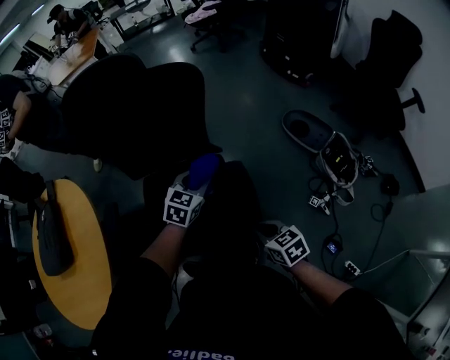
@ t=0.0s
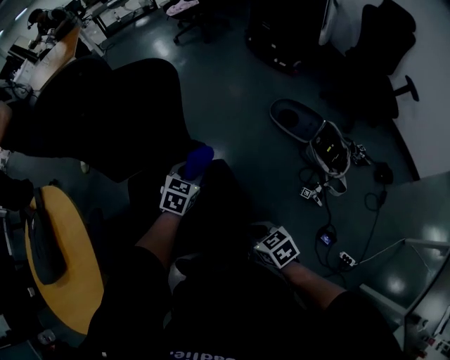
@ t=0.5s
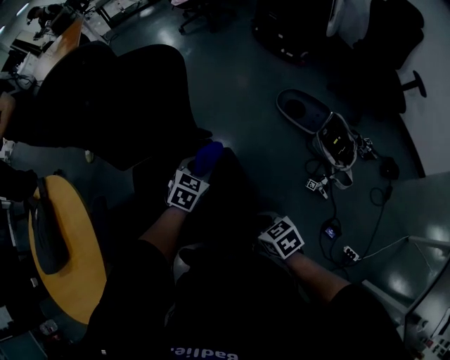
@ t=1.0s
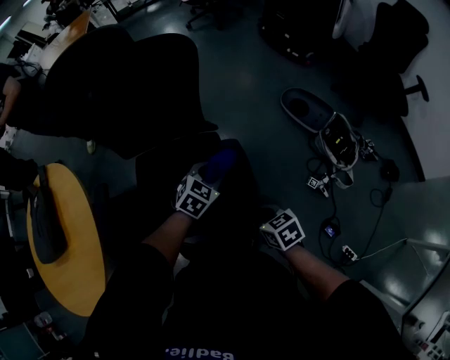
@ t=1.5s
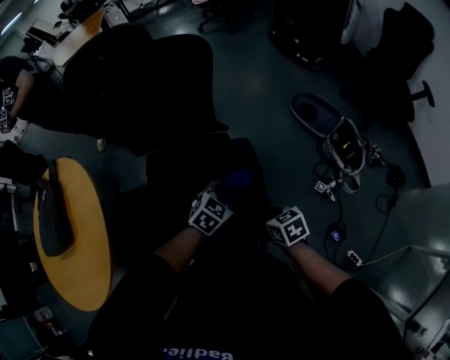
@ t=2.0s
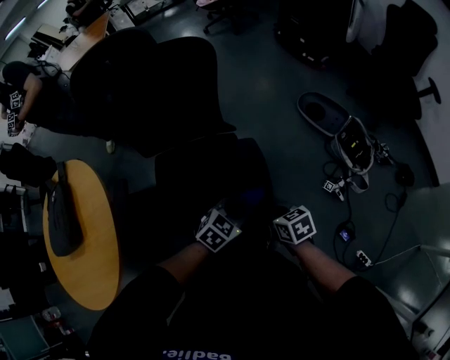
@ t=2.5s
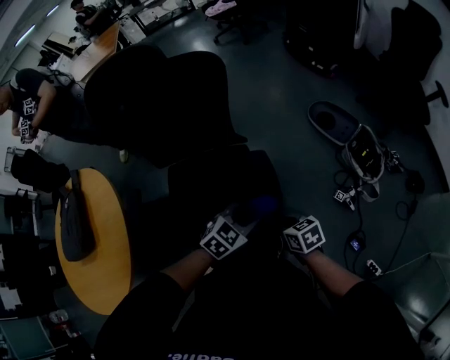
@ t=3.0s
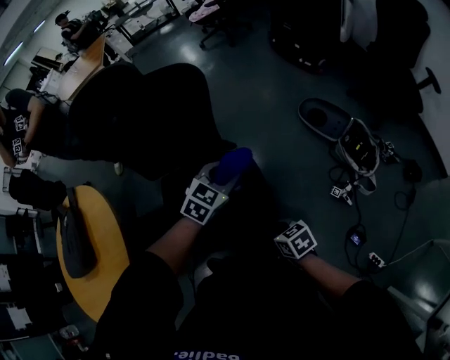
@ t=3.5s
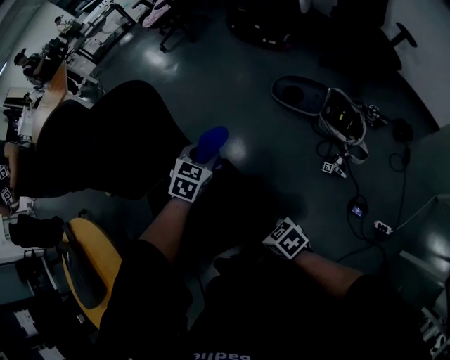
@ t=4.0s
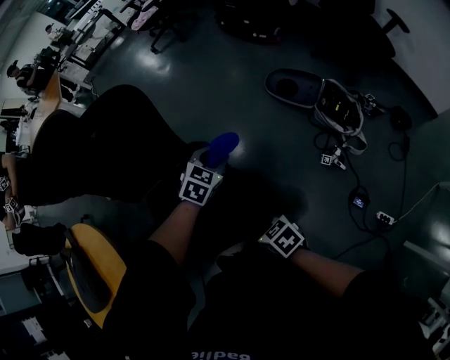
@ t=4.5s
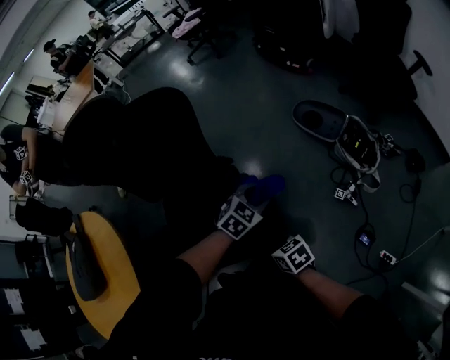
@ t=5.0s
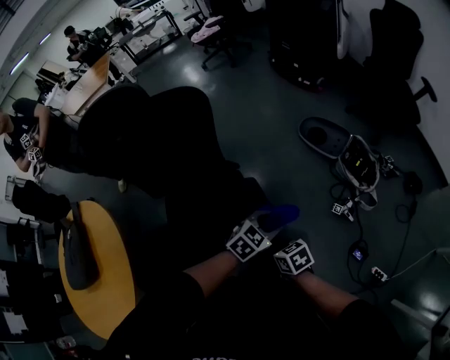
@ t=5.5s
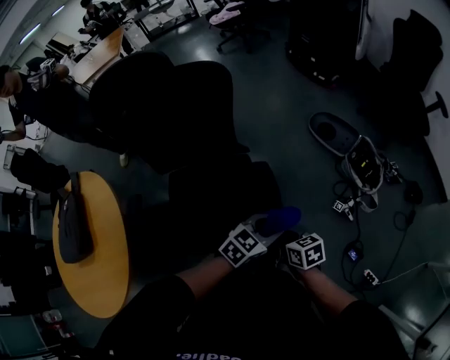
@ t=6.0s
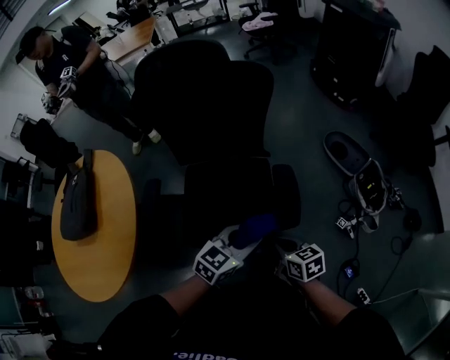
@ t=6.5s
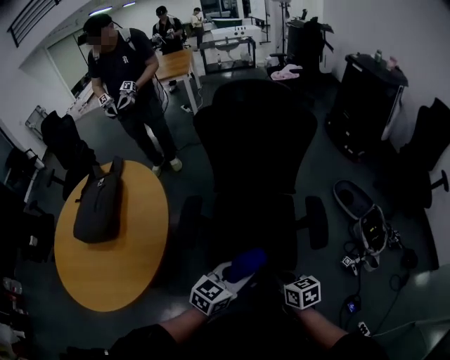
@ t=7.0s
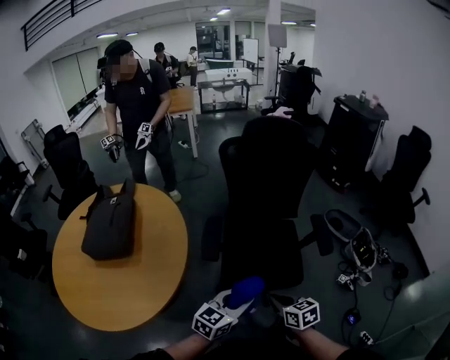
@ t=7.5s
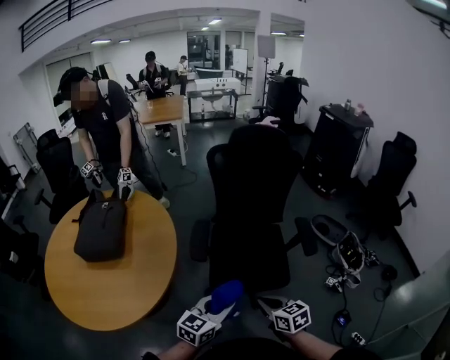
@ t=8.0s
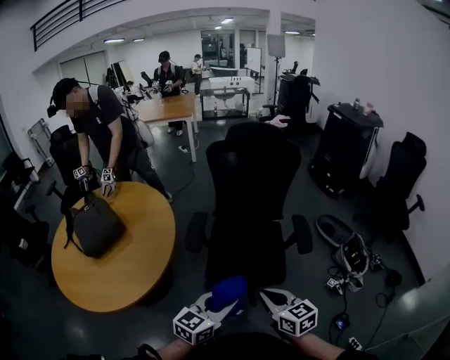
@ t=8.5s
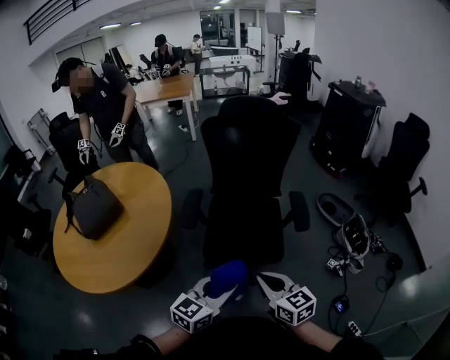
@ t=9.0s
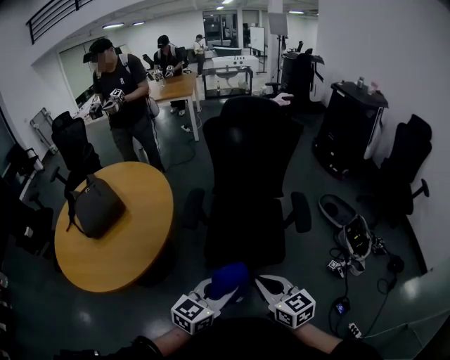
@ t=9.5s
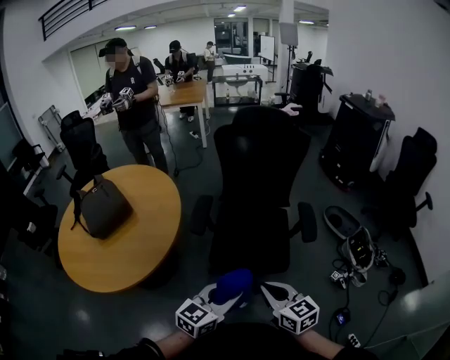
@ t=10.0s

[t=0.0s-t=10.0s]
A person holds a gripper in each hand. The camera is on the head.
t=0.0s to t=2.0s: The left gripper heads backward, downward and to the right, covering some 15 cm.
t=2.0s to t=4.0s: The left gripper is displaced forward by approximately 20 cm.
t=4.0s to t=6.0s: The left gripper shifts by some 25 cm, and swivels about 30 degrees.
t=6.0s to t=8.0s: The right gripper moves to the left, backward and upward, some 40 cm, and rotates roughly 20 degrees, while the left gripper is displaced to the left and backward by about 50 cm, and swivels approximately 40 degrees.
t=8.0s to t=10.0s: The right gripper is displaced upward and to the right by some 10 cm, while the left gripper travels to the right and backward by roughly 10 cm.

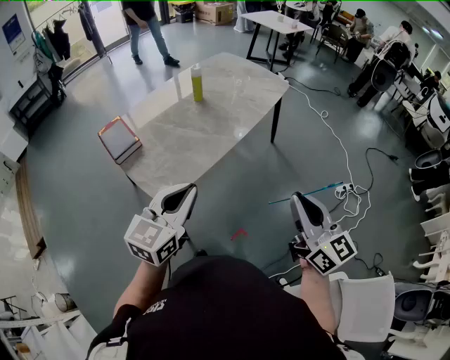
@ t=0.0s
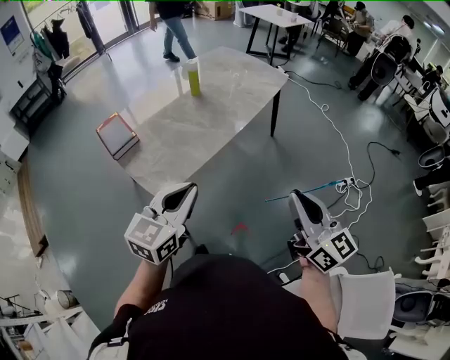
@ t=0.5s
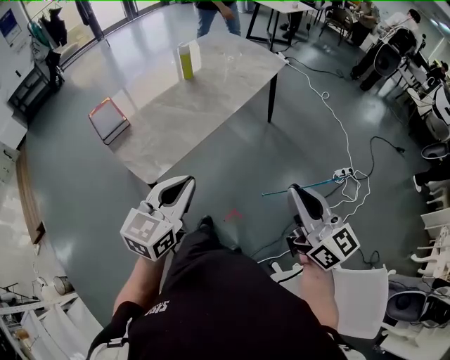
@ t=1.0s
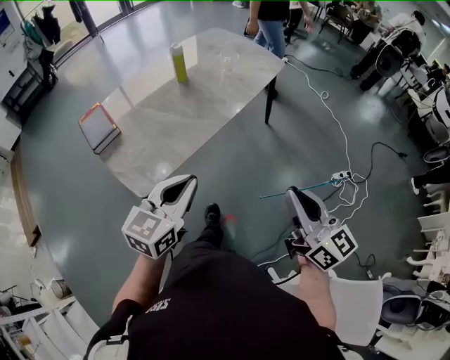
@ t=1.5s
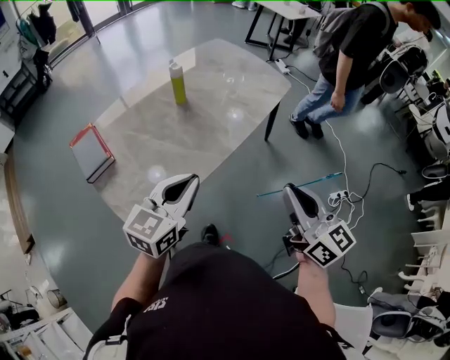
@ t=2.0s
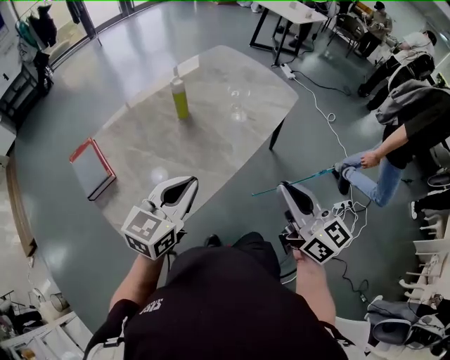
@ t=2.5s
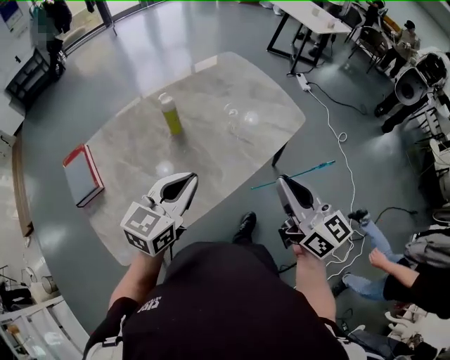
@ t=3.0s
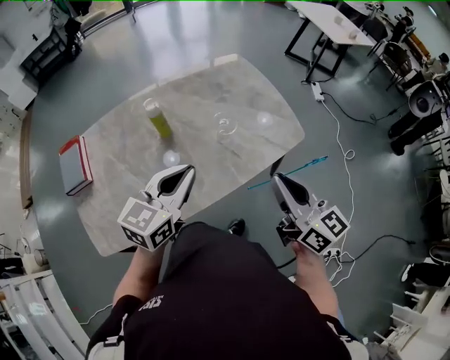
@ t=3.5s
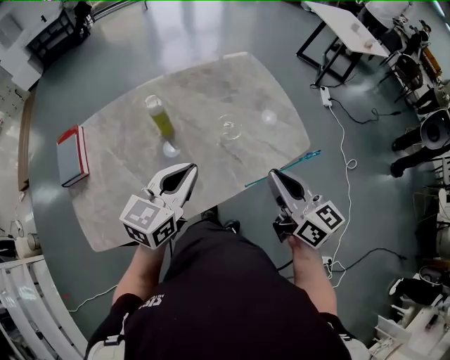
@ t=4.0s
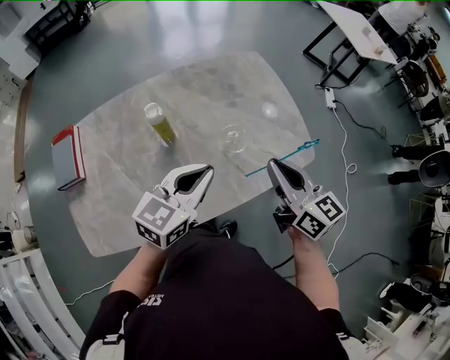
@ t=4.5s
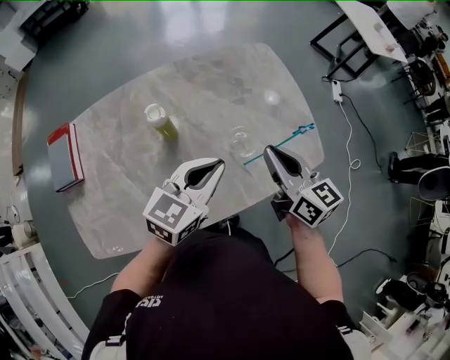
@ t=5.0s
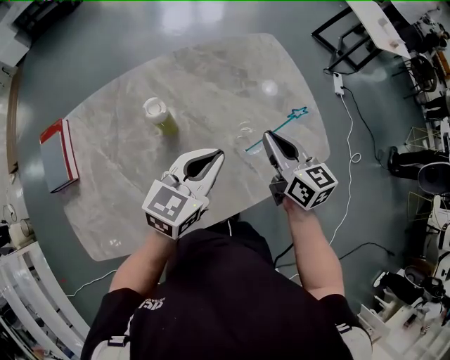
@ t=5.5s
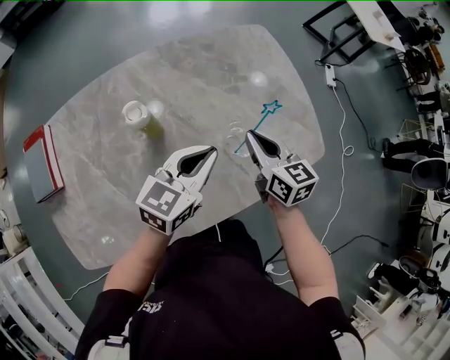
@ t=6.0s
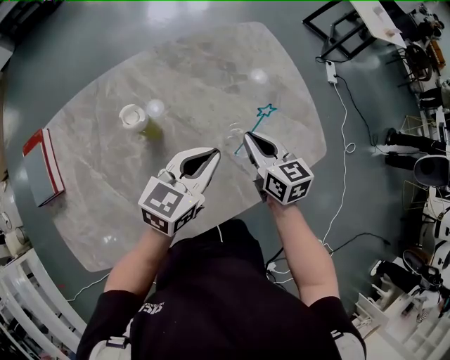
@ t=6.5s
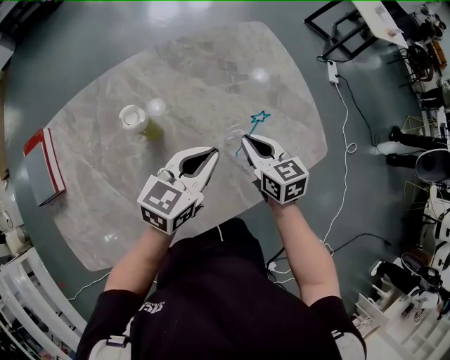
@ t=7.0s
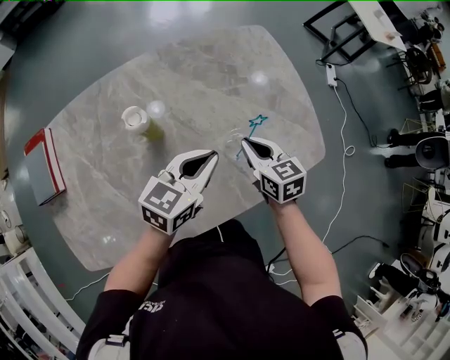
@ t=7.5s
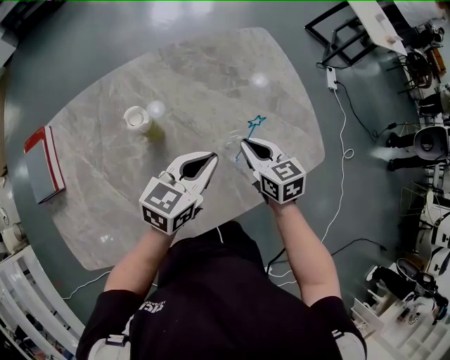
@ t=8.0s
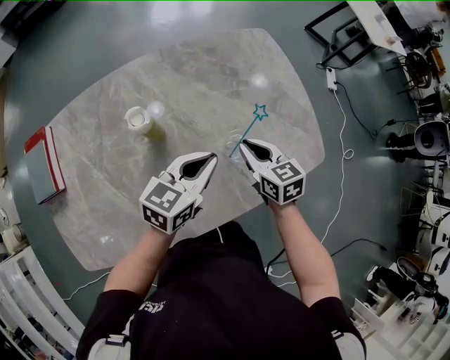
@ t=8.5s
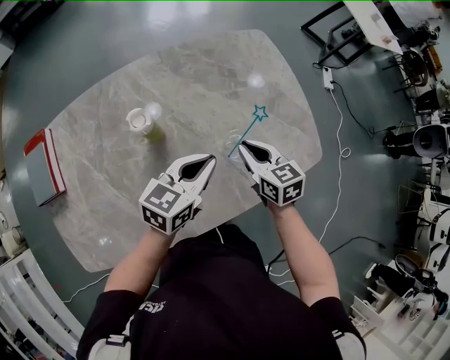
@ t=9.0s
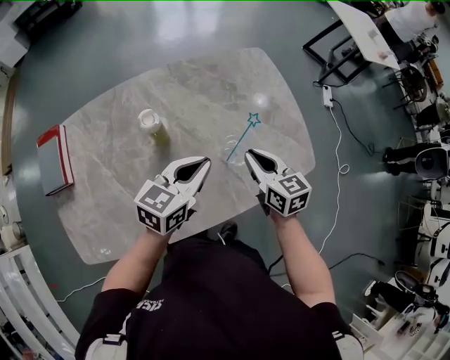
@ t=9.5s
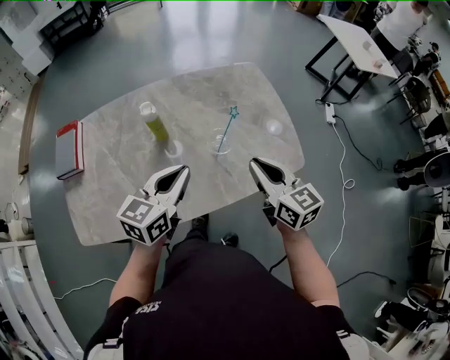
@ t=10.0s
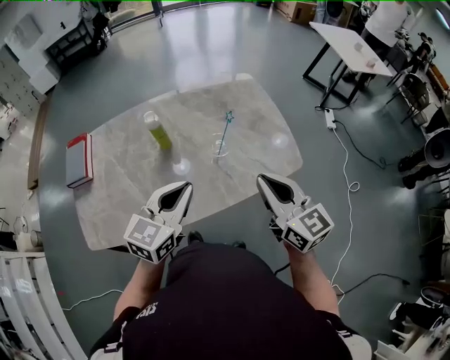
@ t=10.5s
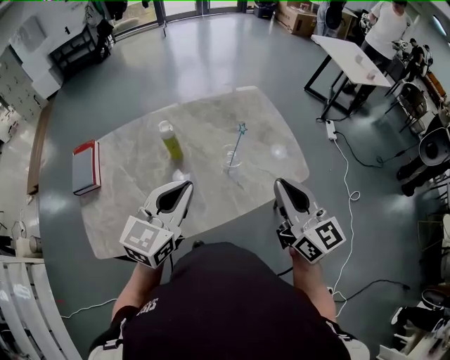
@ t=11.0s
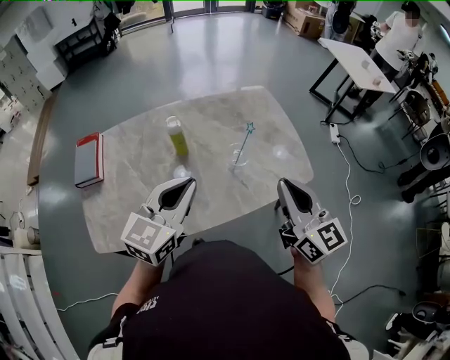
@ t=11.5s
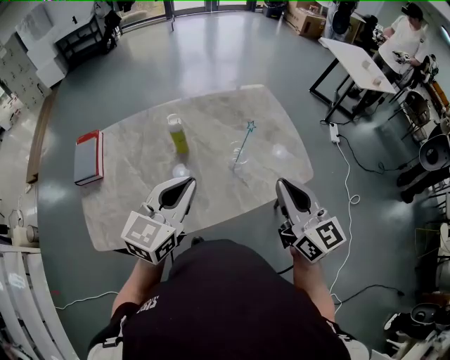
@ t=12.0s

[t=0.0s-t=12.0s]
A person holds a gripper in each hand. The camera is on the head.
t=0.0s to t=2.0s: Both grippers travel together forward, approximately 20 cm.
t=2.0s to t=4.0s: The left gripper moves forward and to the right, approximately 35 cm, and turns by some 20 degrees, while the right gripper moves forward, roughly 40 cm, and turns by approximately 30 degrees.
t=4.0s to t=6.0s: Both grippers move forward and downward, about 25 cm.
t=6.0s to t=8.0s: The grippers stay close to where they were, moving slightly.
t=8.0s to t=10.0s: The left gripper shifts about 15 cm upward and backward. The right gripper is displaced upward, backward and to the right by about 20 cm, and swivels some 20 degrees.
t=10.0s to t=12.0s: The two grippers go some 10 cm upward and backward.

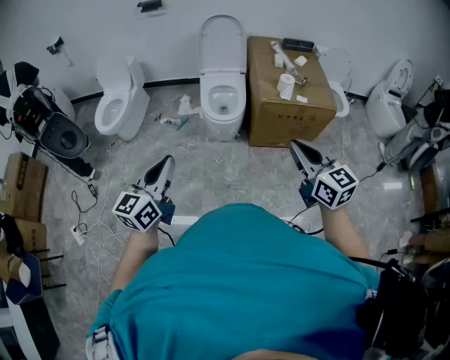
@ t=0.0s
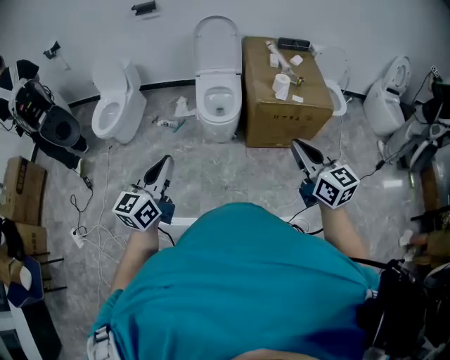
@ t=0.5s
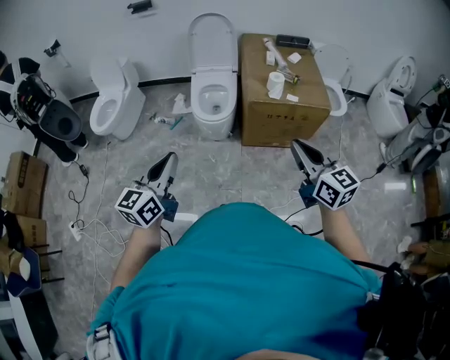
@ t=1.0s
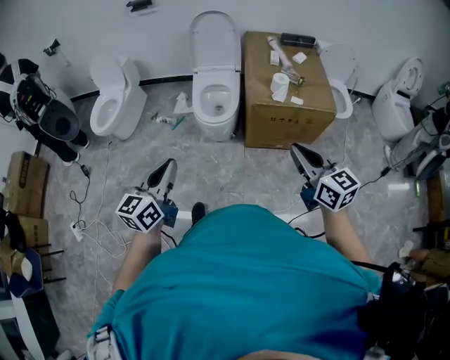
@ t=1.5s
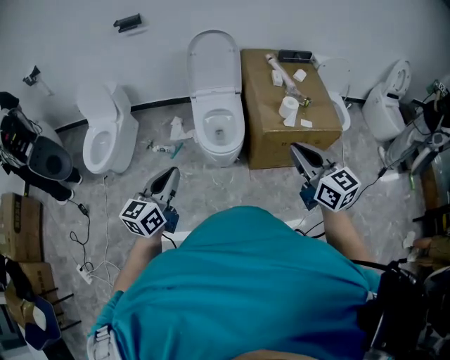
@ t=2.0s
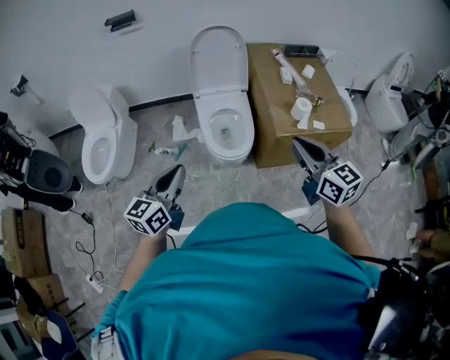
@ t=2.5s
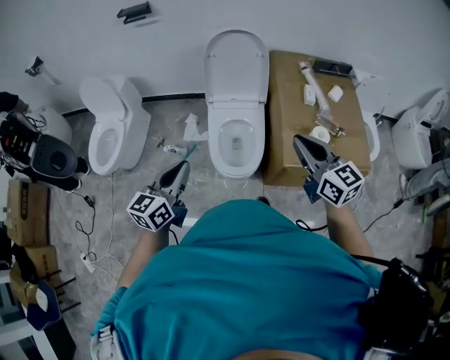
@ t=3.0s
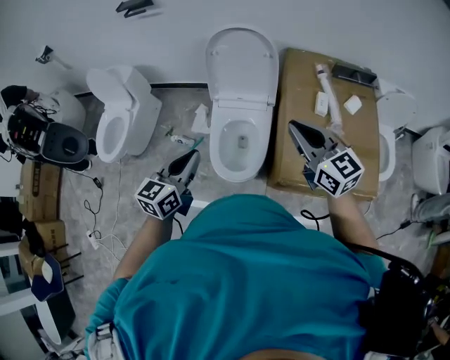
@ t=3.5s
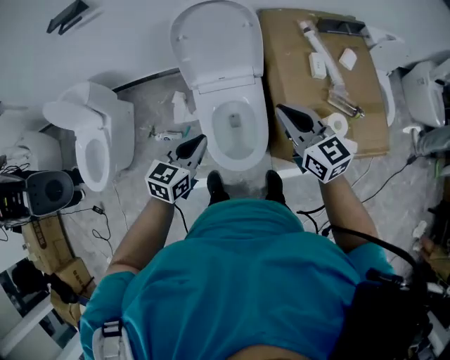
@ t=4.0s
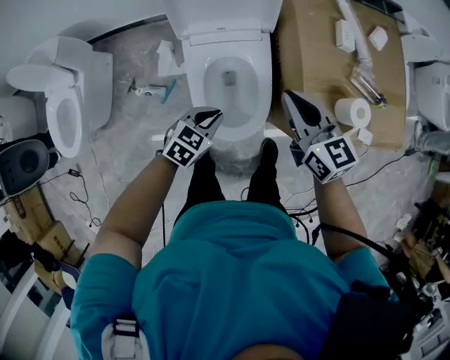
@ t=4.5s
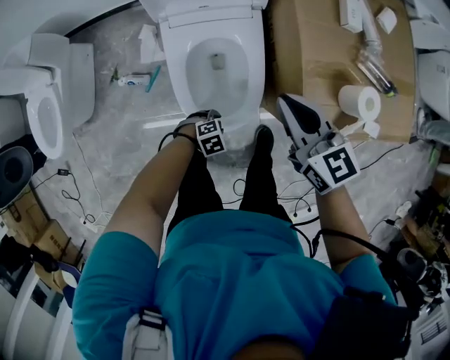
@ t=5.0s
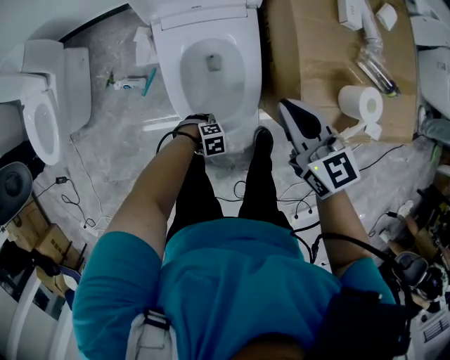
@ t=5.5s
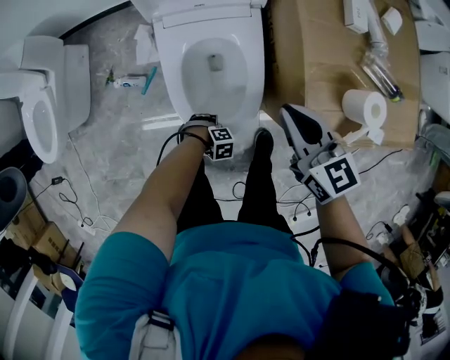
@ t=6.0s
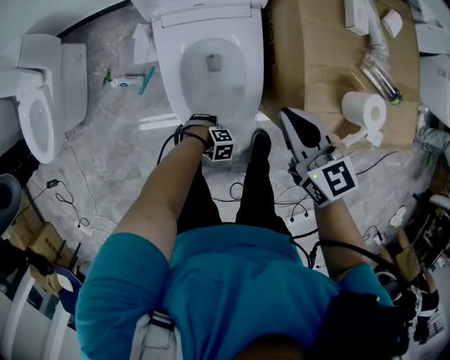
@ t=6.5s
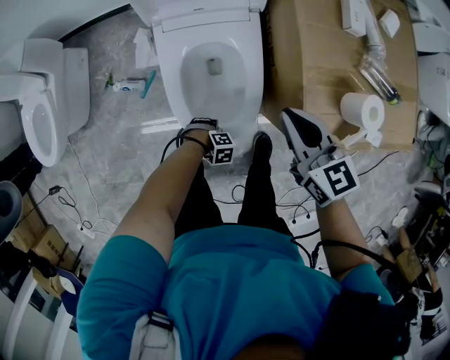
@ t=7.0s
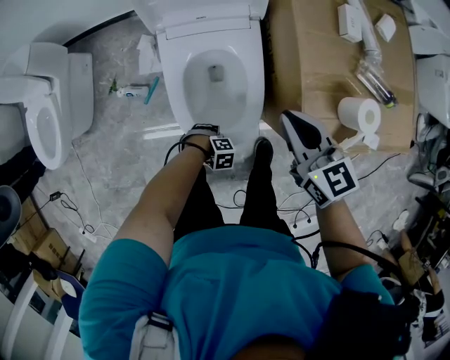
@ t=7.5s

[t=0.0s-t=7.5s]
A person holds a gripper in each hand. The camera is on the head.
t=0.0s to t=2.0s: The two grippers go about 25 cm forward.
t=2.0s to t=4.0s: The pair of grippers is taken forward, roughly 50 cm. The left gripper rotates approximately 30 degrees.
t=4.0s to t=5.5s: The left gripper is displaced downward by roughly 50 cm, angles its fingers downward, by about 40 degrees, and opens its fingers. The right gripper moves downward, approximately 20 cm.
t=5.5s to t=7.5s: There are only small adjustments of the grippers.
